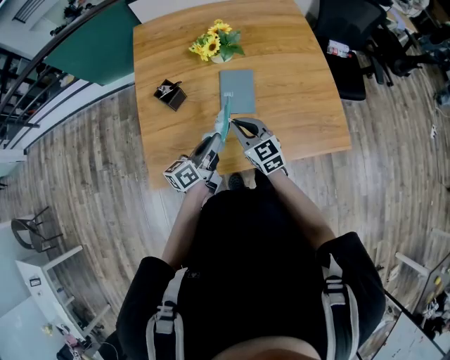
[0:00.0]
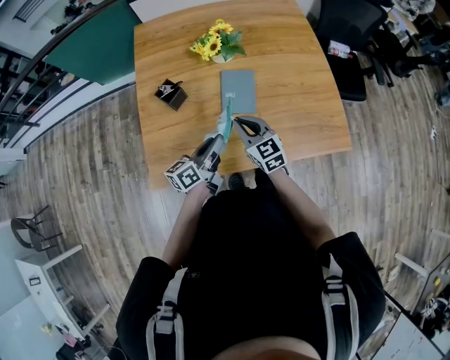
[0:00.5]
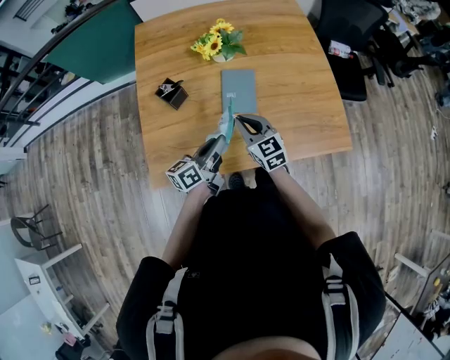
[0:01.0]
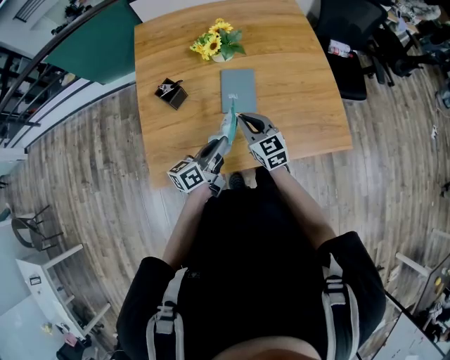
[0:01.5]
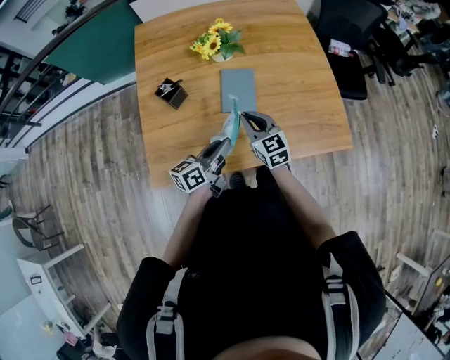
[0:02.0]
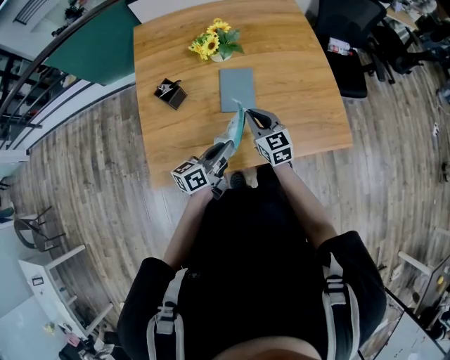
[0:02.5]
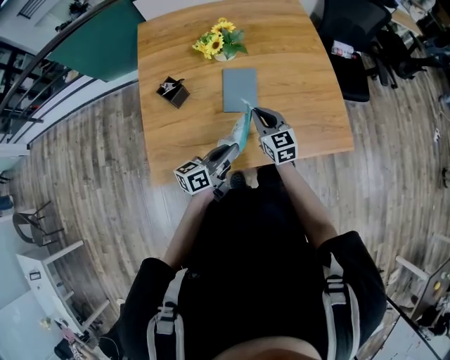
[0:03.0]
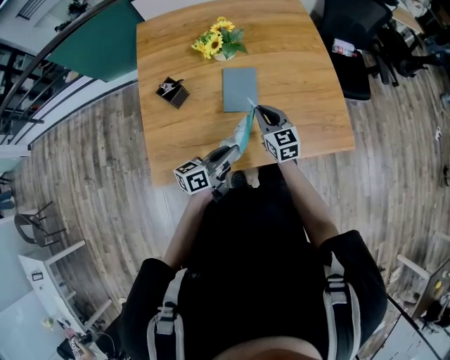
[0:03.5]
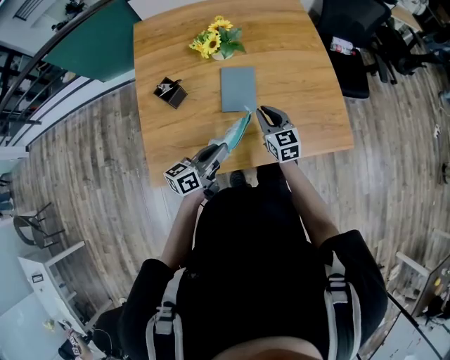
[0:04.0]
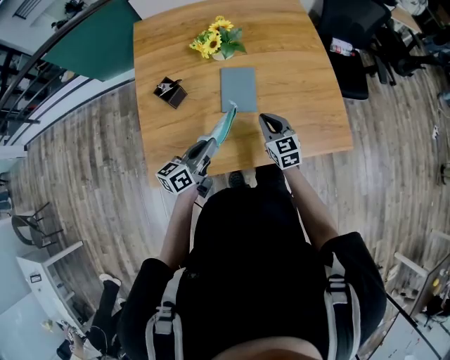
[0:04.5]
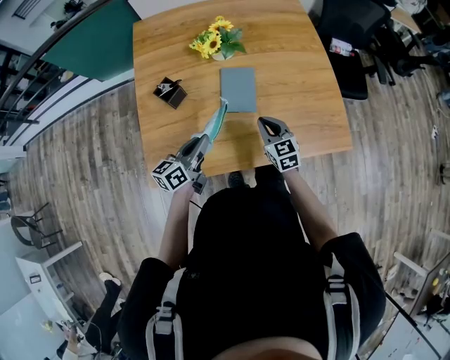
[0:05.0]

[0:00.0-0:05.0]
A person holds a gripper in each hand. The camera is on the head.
0:00.0 to 0:02.5: The right gripper moves to the right, roughly 5 cm. Meanwhile the left gripper moves some 5 cm.
0:02.5 to 0:05.0: The left gripper heads to the left, covering about 10 cm, while the right gripper shifts by some 5 cm.

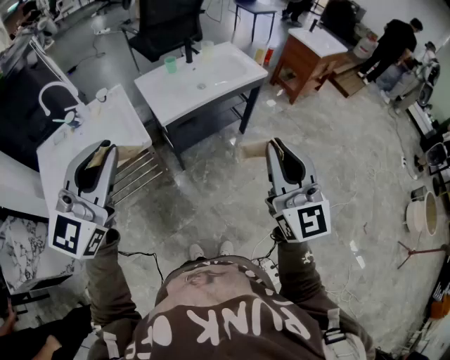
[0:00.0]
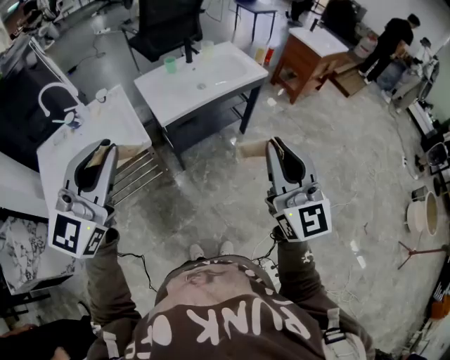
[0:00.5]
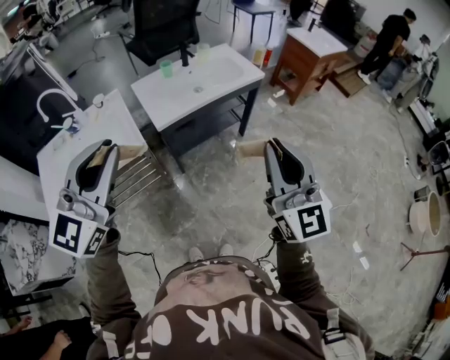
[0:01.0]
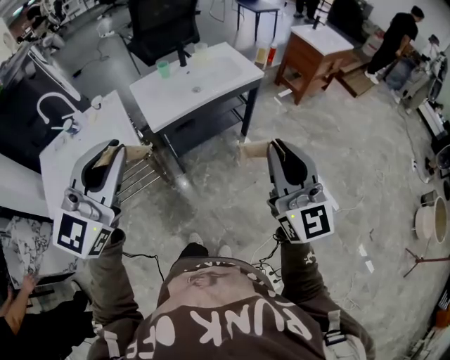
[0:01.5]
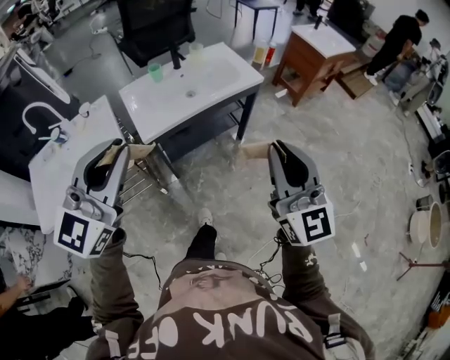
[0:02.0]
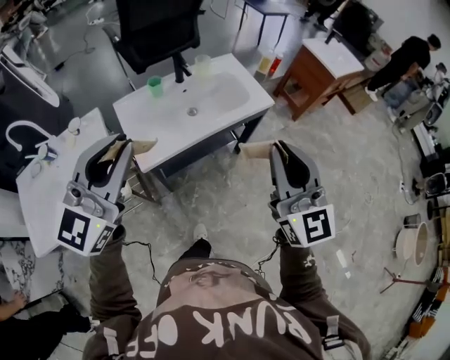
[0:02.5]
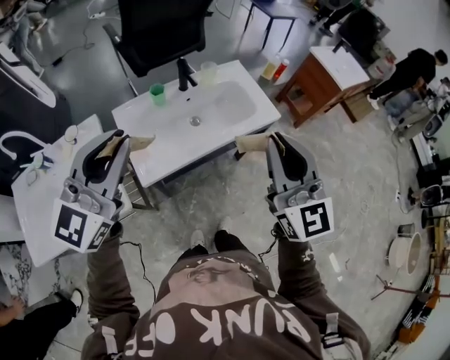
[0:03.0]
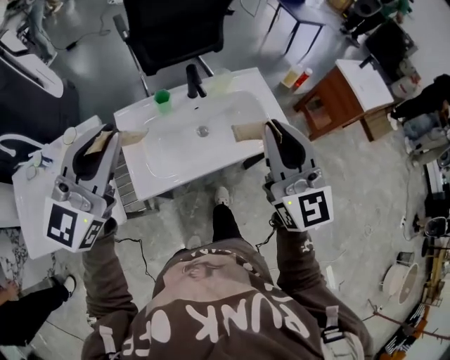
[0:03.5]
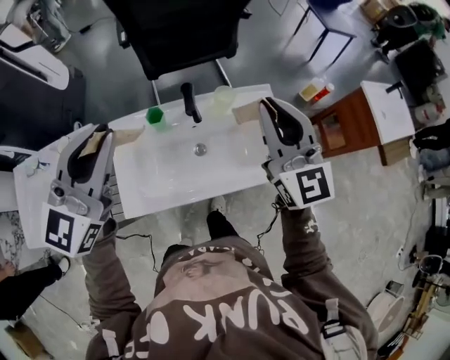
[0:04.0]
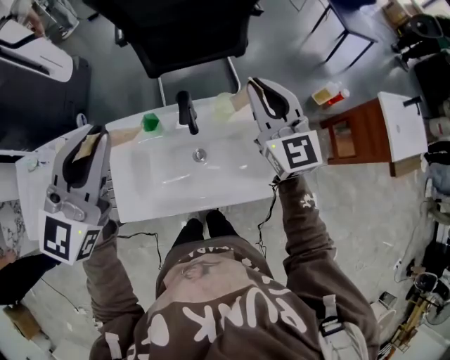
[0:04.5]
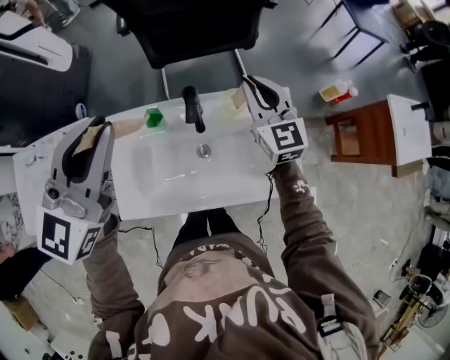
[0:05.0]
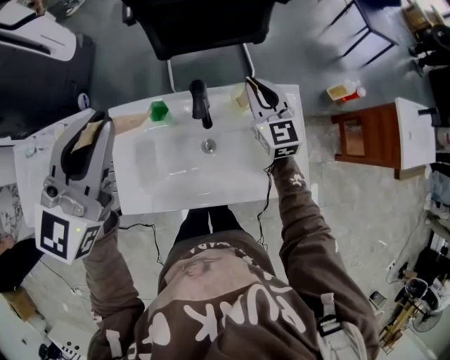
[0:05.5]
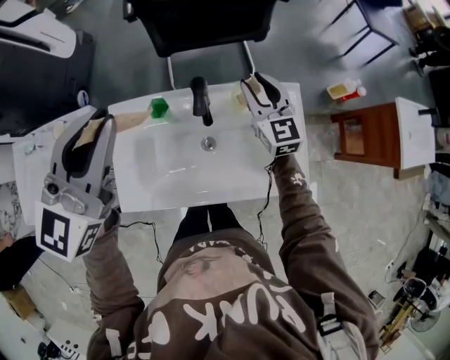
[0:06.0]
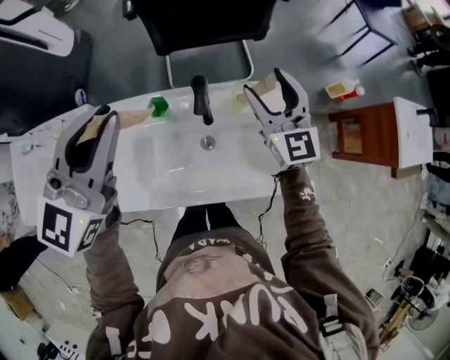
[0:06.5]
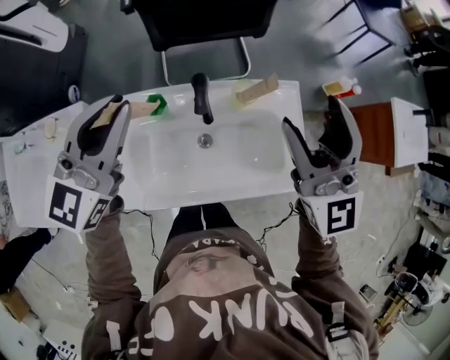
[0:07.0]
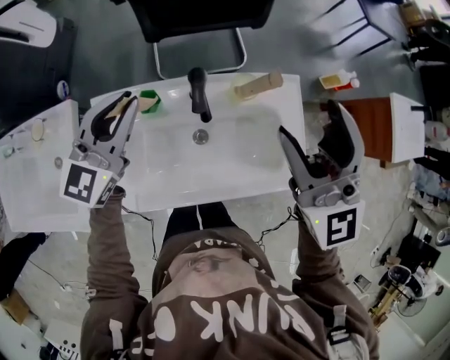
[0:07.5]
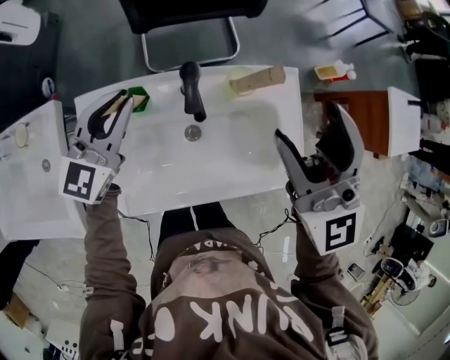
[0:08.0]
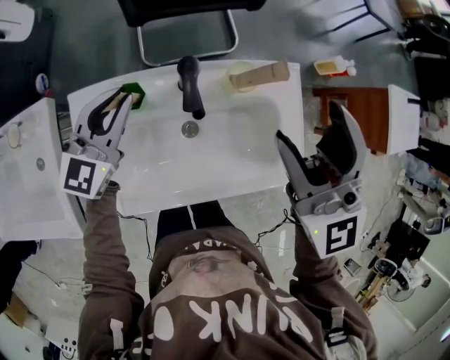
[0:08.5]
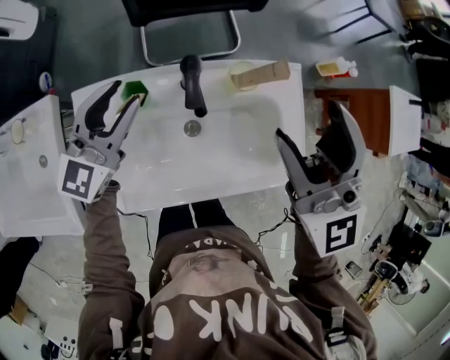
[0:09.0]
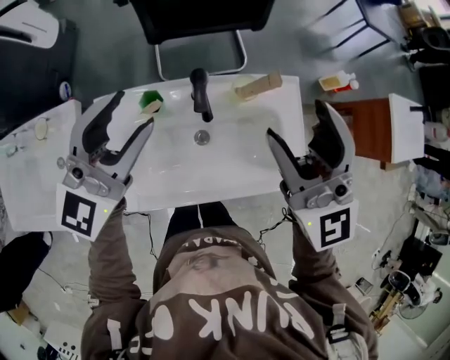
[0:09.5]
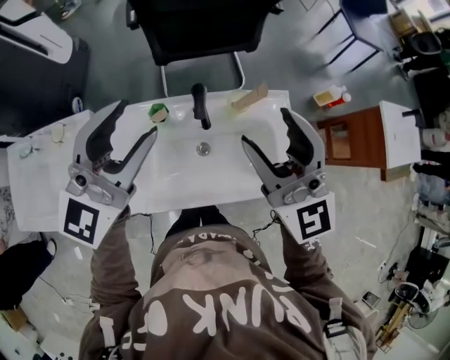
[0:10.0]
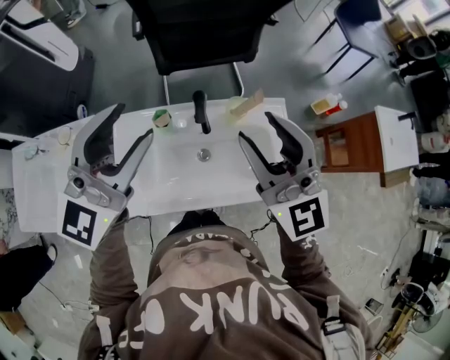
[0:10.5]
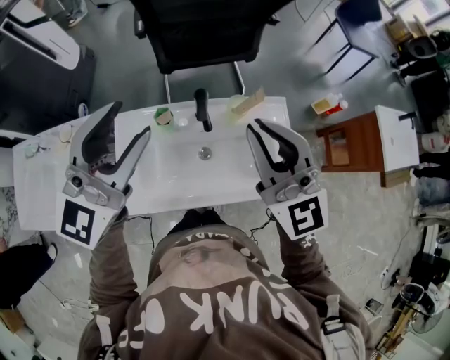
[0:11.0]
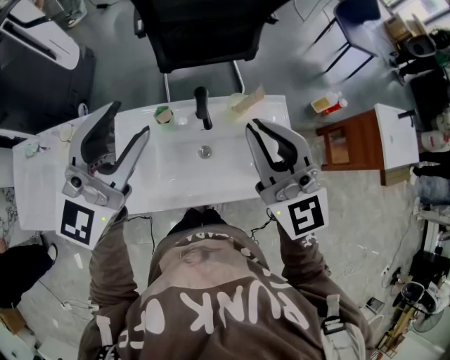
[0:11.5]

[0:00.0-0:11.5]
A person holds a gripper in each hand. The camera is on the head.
0:00.0 to 0:02.0: Both grippers travel together forward and to the right, roughly 15 cm.
0:02.0 to 0:04.0: The pair of grippers is taken forward, about 60 cm. The left gripper turns by approximately 20 degrees. The right gripper changes its angle by some 20 degrees.
0:04.0 to 0:06.0: The right gripper heads downward and forward, covering some 30 cm, while the left gripper moves forward, approximately 10 cm.
0:06.0 to 0:07.5: The right gripper moves upward and backward, some 20 cm, and opens its fingers. The left gripper travels downward and forward by approximately 15 cm.
0:07.5 to 0:09.5: The left gripper goes approximately 5 cm upward, and opens up.
0:09.5 to 0:11.5: The left gripper heads upward and backward, covering approximately 15 cm. Meanwhile the right gripper is displaced backward by roughly 5 cm, and closes.

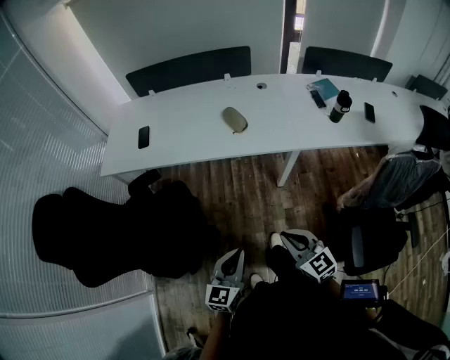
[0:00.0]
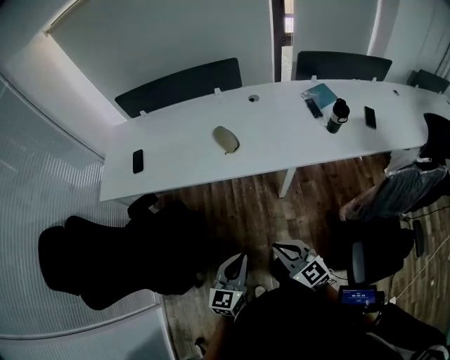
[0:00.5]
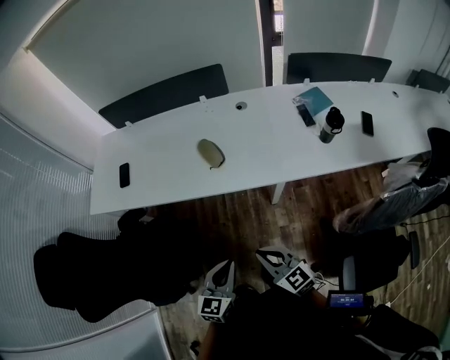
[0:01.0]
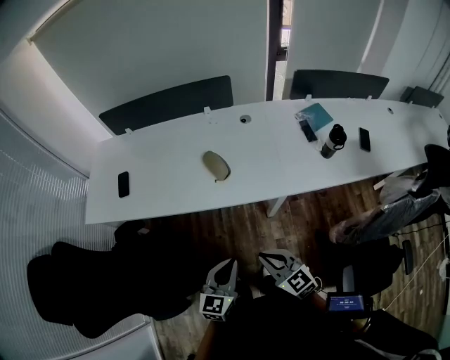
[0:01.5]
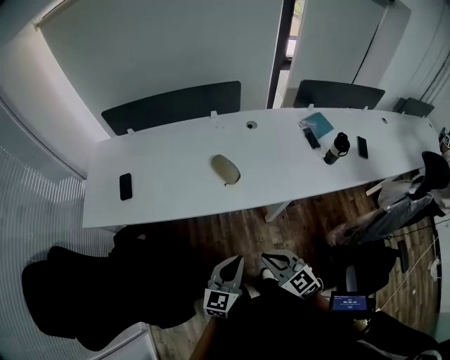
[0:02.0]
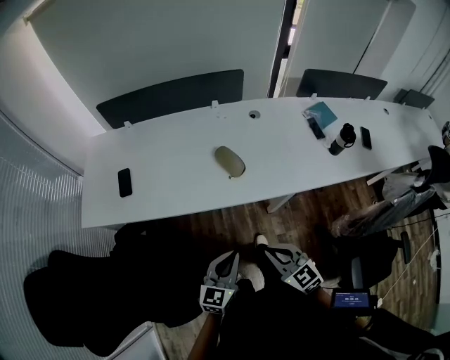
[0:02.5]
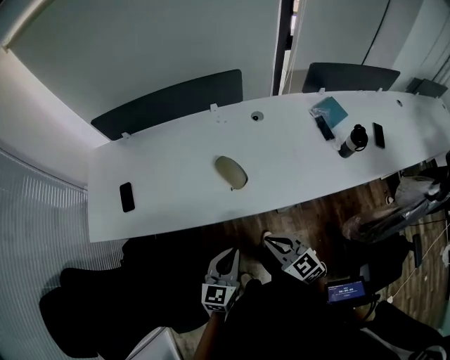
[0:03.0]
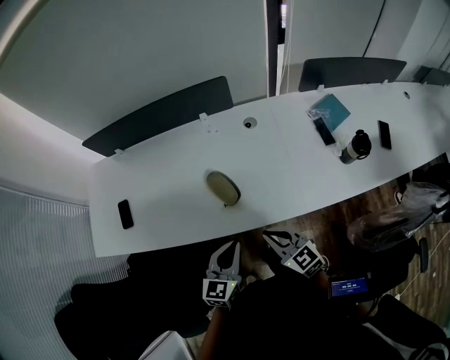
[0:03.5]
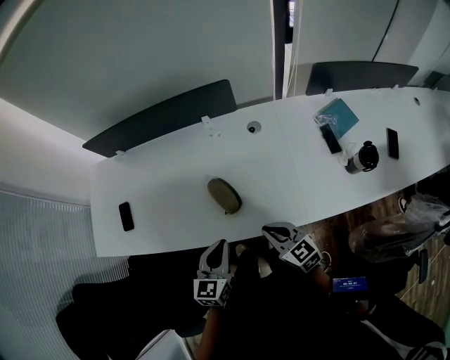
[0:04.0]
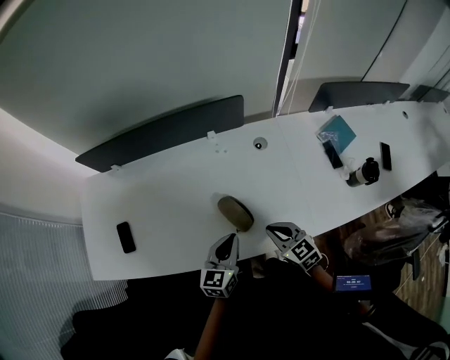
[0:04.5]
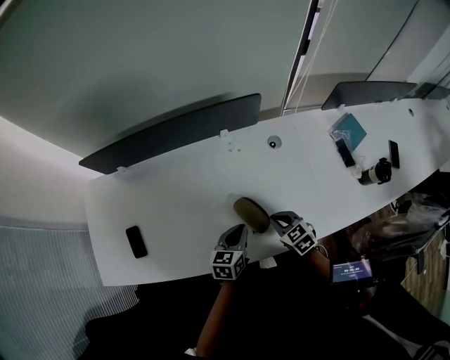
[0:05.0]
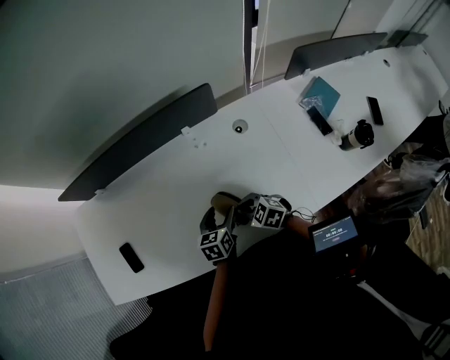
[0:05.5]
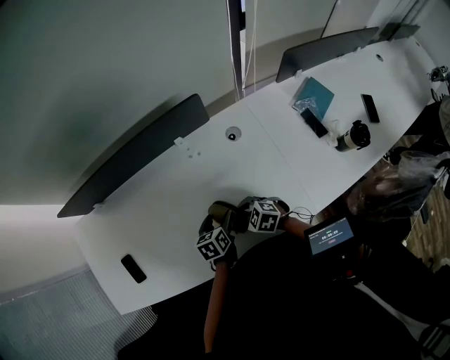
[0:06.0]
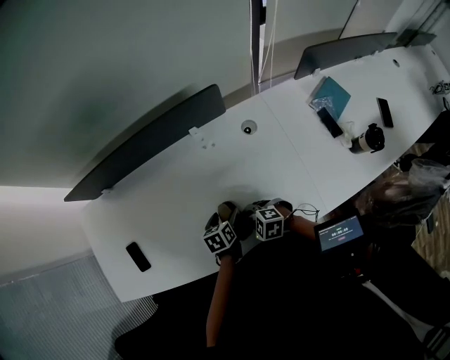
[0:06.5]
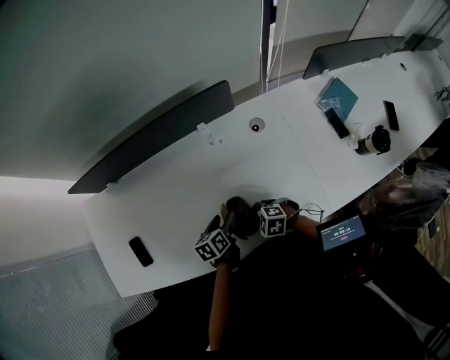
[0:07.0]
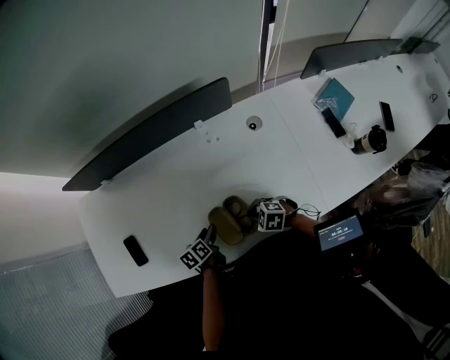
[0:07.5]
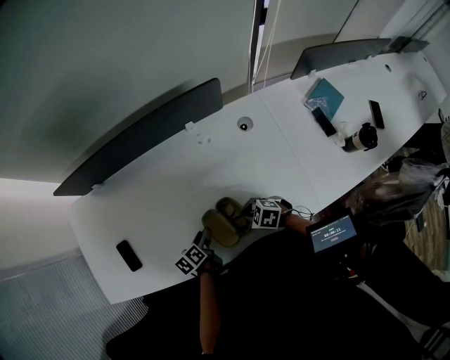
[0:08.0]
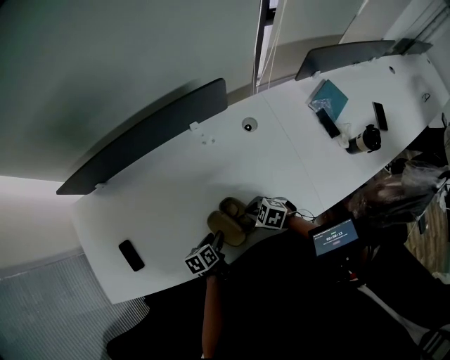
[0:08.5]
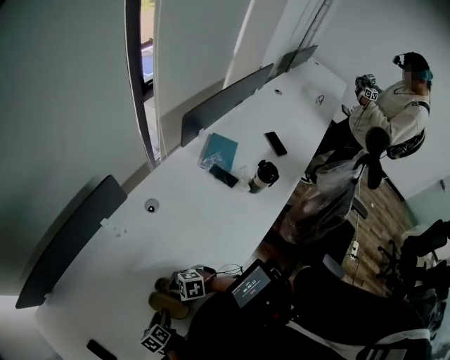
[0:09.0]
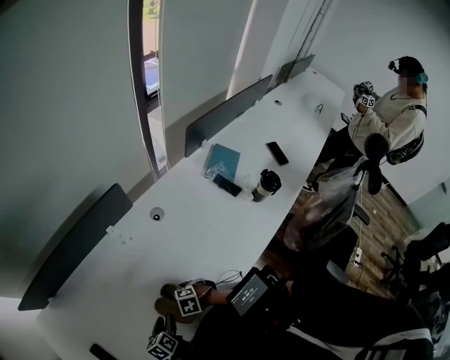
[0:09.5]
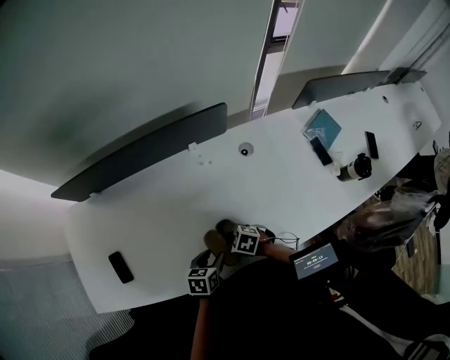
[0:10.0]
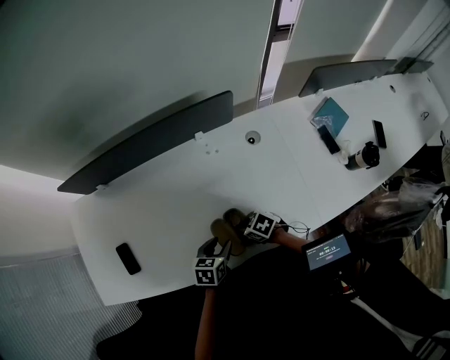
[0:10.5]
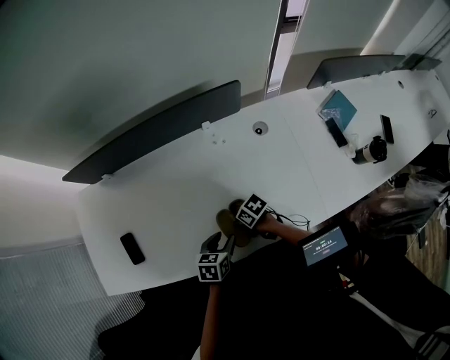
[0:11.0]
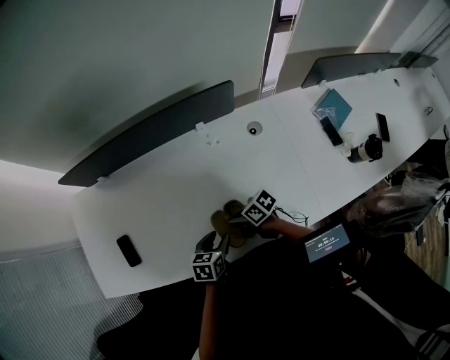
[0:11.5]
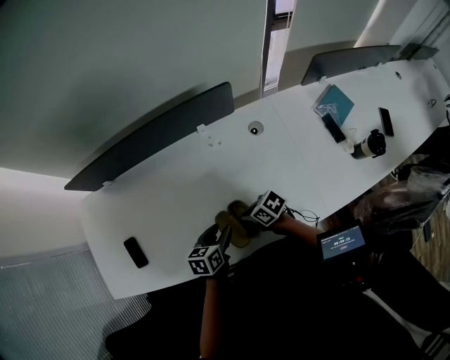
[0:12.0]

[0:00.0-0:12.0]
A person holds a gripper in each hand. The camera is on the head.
0:00.0 to 0:02.0: The grippers both shift forward by about 20 cm.
0:02.0 to 0:04.0: Both grippers travel together forward, approximately 25 cm.
0:04.0 to 0:06.0: The right gripper is displaced forward, downward and to the left by about 20 cm, and swivels approximately 30 degrees. The left gripper shifts approximately 25 cm forward and downward, swivels some 40 degrees, and opens.
0:06.0 to 0:08.0: The right gripper shifts by roughly 5 cm, while the left gripper goes roughly 15 cm to the left, turns by about 30 degrees, and closes up.
0:08.0 to 0:10.0: The right gripper opens its fingers. The left gripper changes place by roughly 10 cm, and turns by about 40 degrees.
0:10.0 to 0:12.0: The right gripper changes place by roughly 5 cm, turns by roughly 30 degrees, and closes up. The left gripper moves some 5 cm.
